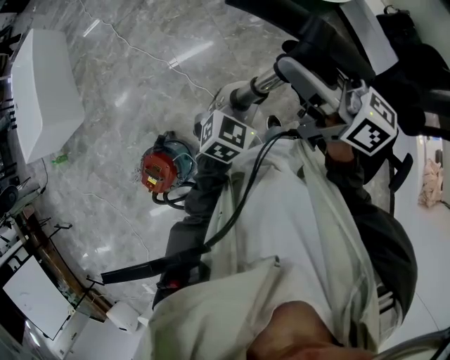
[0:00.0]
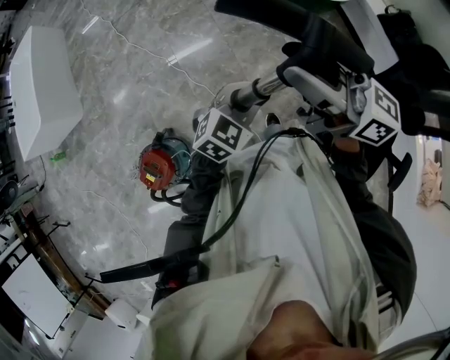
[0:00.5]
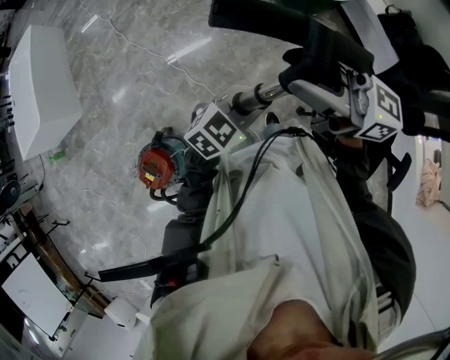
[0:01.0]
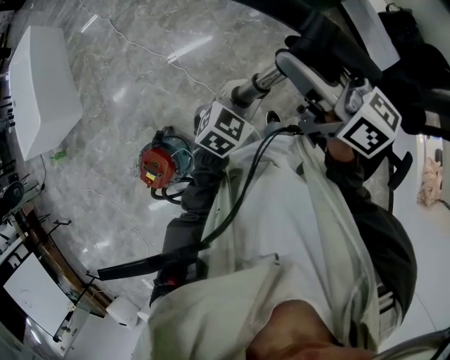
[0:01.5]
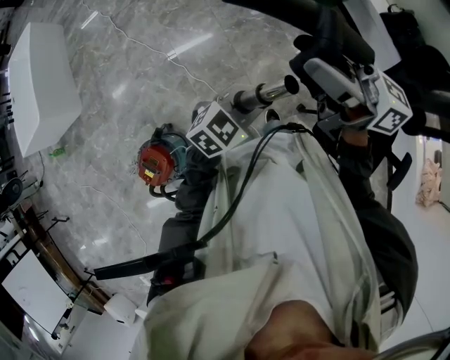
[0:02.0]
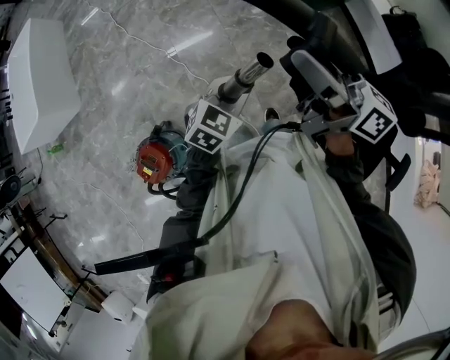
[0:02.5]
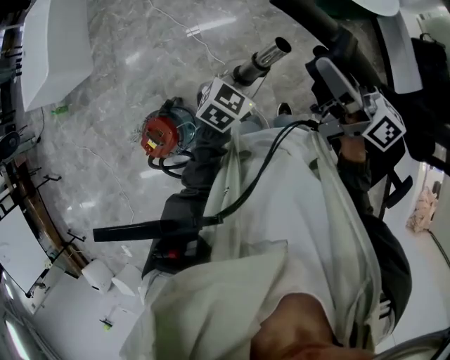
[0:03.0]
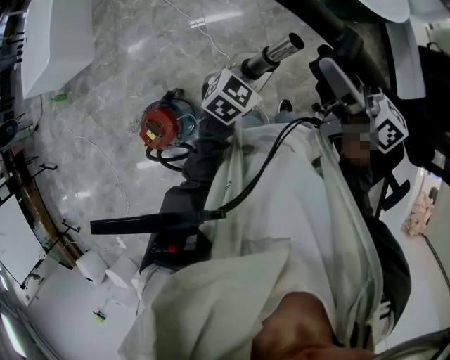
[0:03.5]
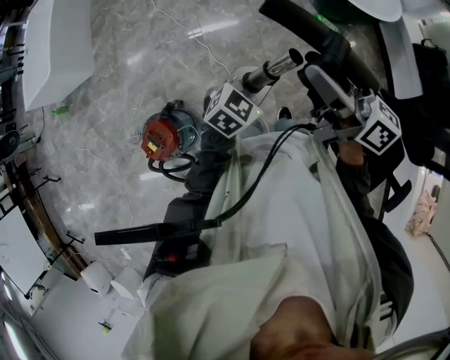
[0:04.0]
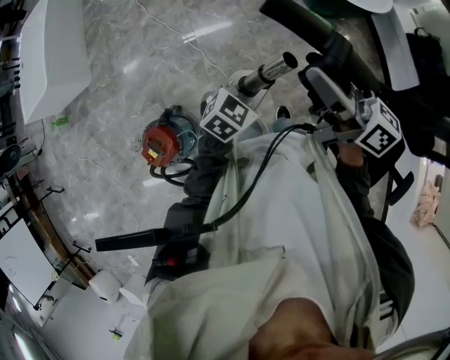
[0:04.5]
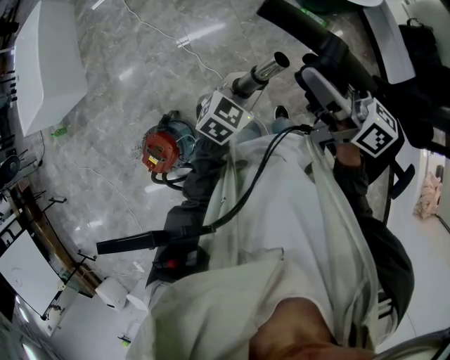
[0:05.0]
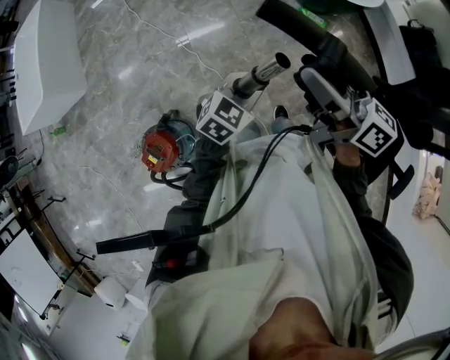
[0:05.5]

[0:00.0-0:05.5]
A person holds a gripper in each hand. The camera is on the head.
0:02.0 to 0:03.5: The right gripper travels downward and to the left by some 10 cm; the left gripper goes approximately 10 cm to the left and forward, and swivels some 20 degrees.
0:03.5 to 0:05.5: The grippers make only small movements.

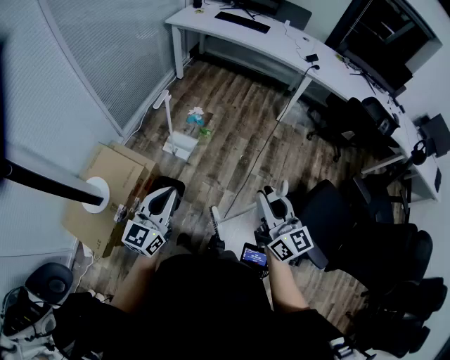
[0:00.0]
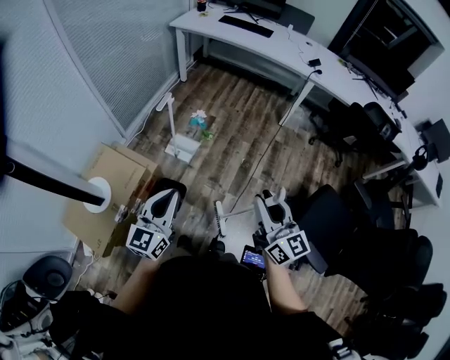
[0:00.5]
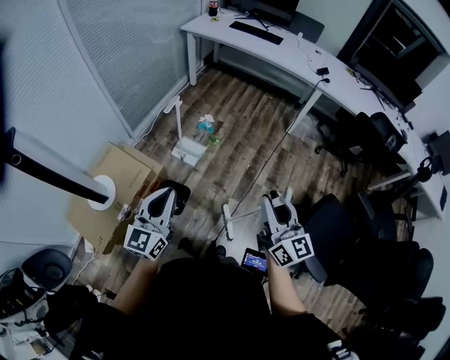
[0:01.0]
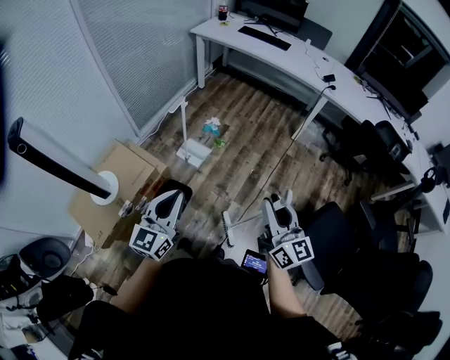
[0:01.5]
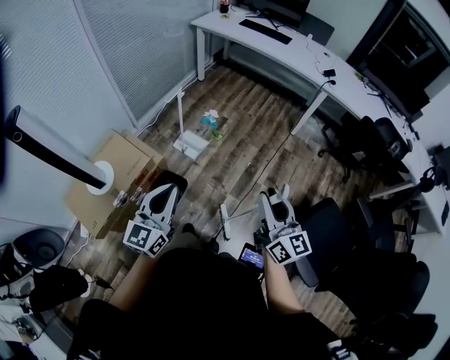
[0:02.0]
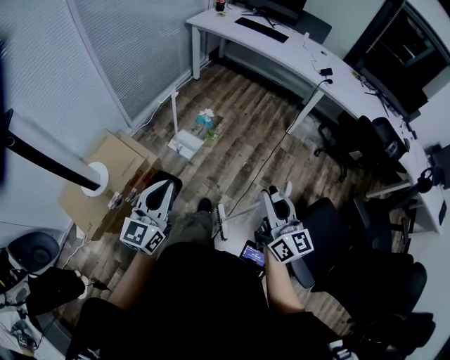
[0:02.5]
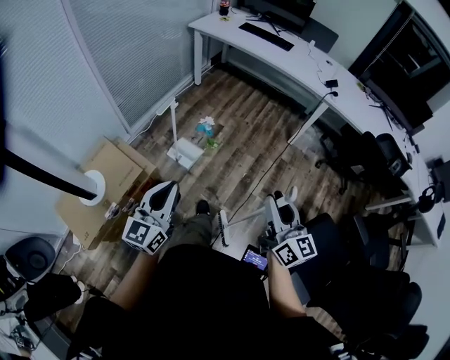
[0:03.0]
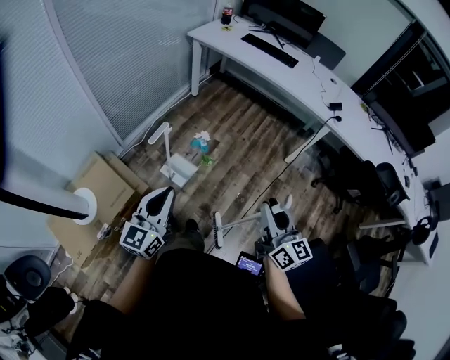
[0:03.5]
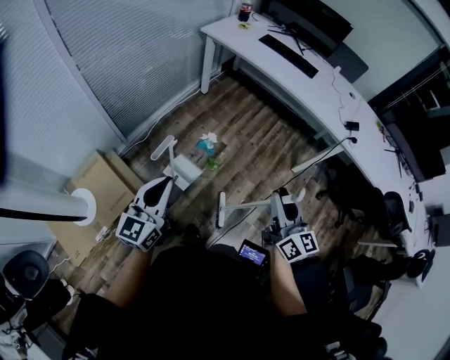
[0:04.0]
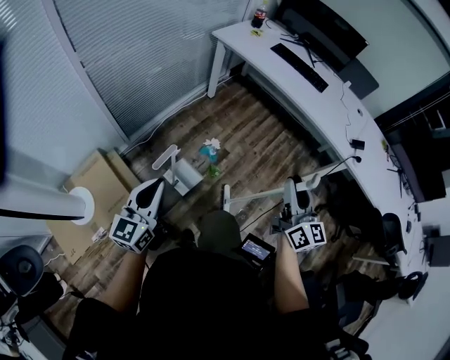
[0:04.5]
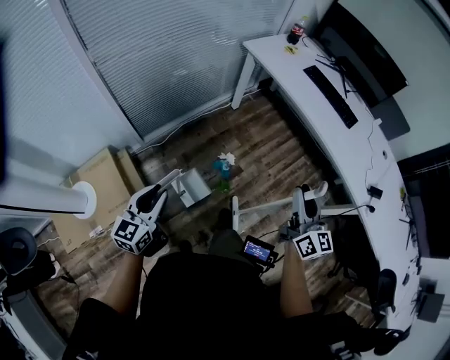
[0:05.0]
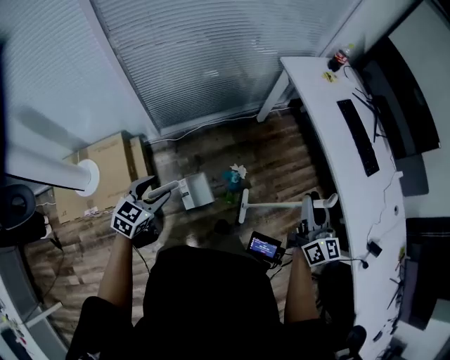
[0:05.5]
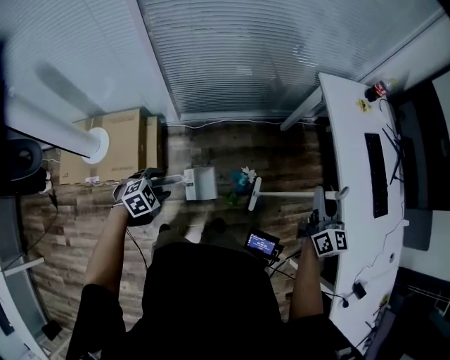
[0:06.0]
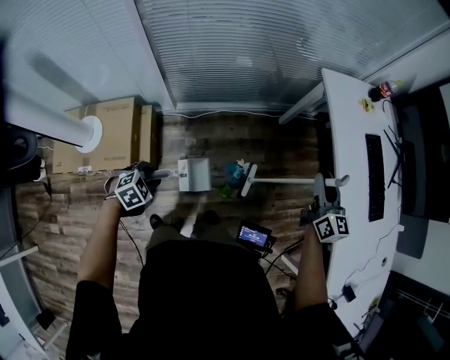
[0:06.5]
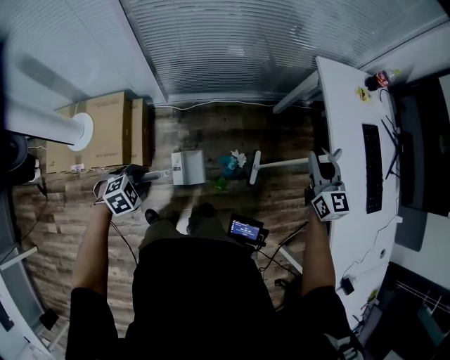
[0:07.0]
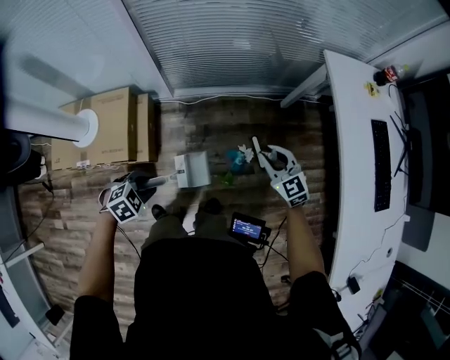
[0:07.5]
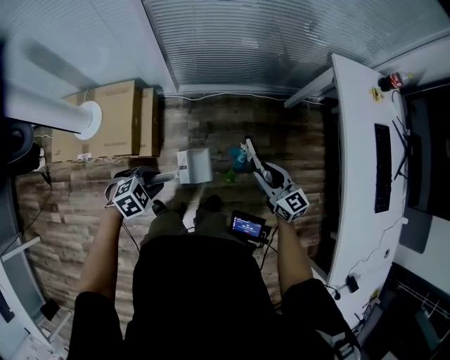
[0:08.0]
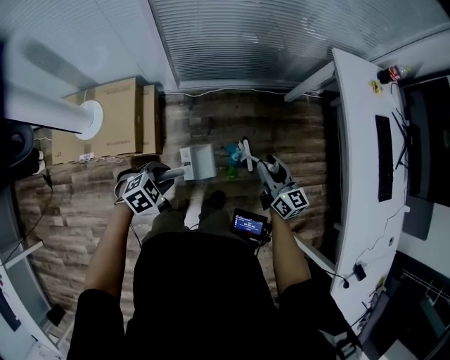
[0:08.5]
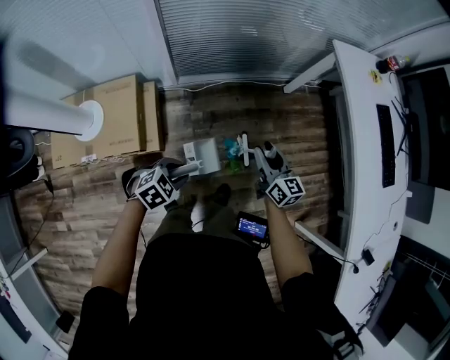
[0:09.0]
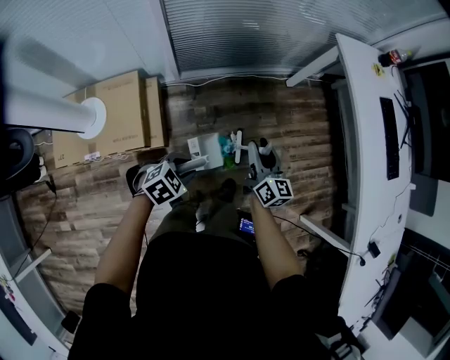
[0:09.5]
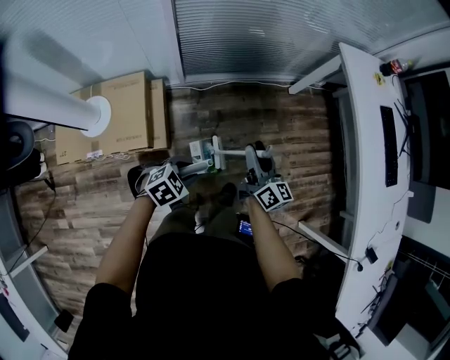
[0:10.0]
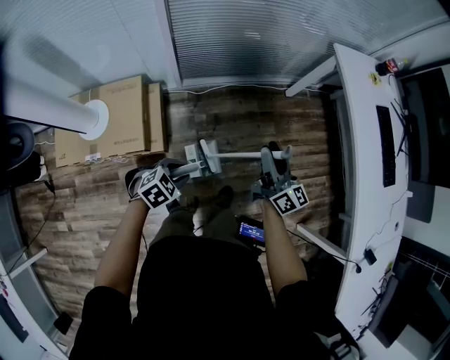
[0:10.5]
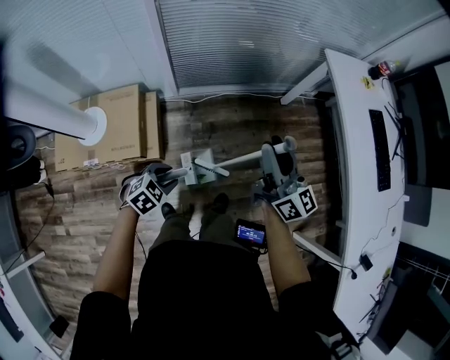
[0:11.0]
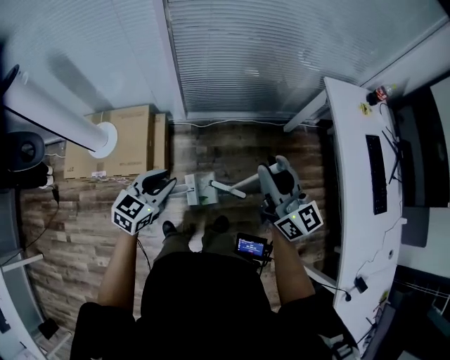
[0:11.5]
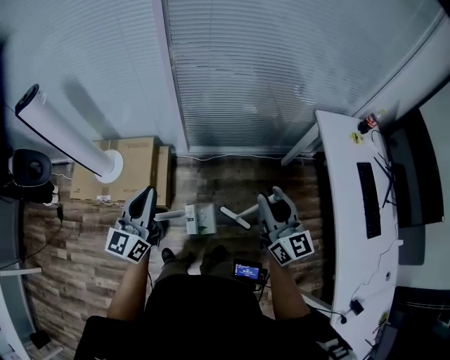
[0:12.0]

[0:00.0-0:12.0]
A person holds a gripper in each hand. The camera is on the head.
0:00.0 to 0:02.0: The left gripper changes place by approximately 5 cm.
0:02.0 to 0:04.0: The two grippers go about 35 cm forward.
0:04.0 to 0:06.0: The left gripper shifts roughly 30 cm downward and forward, angles its fingers downward, by approximately 60 degrees, and opens; the right gripper goes about 50 cm forward, and turns by about 30 degrees.
0:06.0 to 0:08.0: The right gripper is displaced downward and to the left by some 25 cm, and swivels about 40 degrees, while the left gripper closes up.
0:08.0 to 0:10.0: The right gripper shifts approximately 15 cm to the left, and rotates roughly 40 degrees.
0:10.0 to 0:12.0: Both grippers travel together upward, approximately 25 cm. The left gripper tips its fingers upward by roughly 60 degrees, and closes its fingers, while the right gripper swivels approximately 30 degrees.

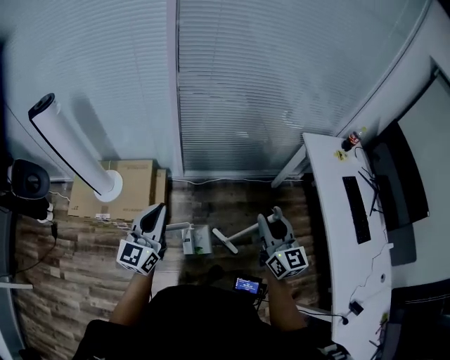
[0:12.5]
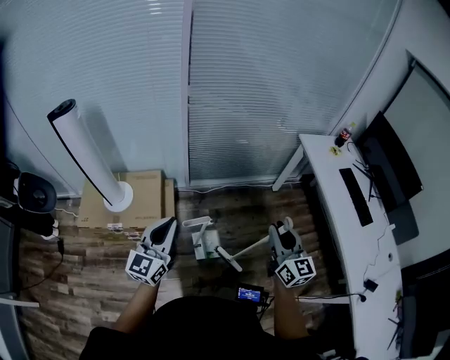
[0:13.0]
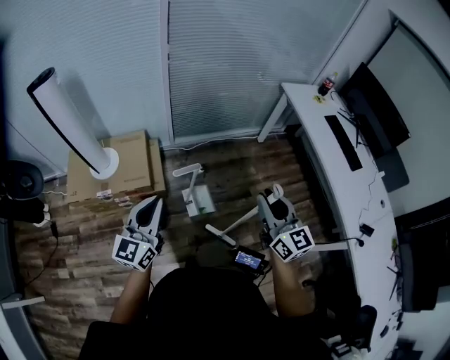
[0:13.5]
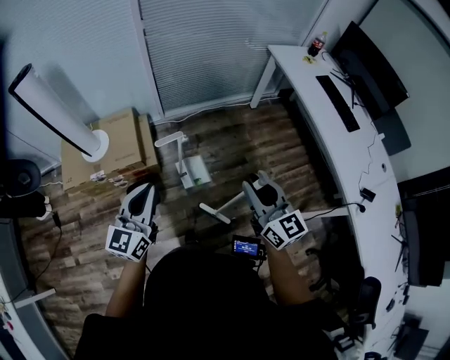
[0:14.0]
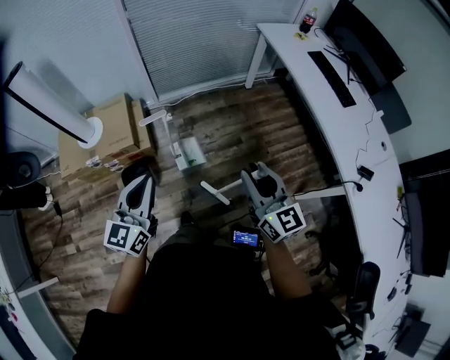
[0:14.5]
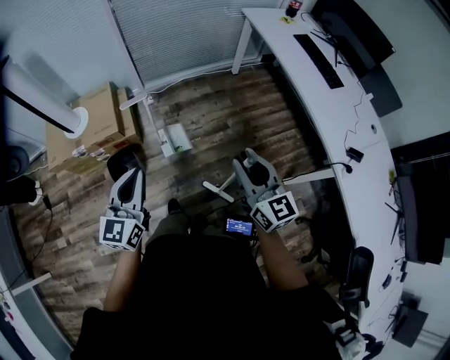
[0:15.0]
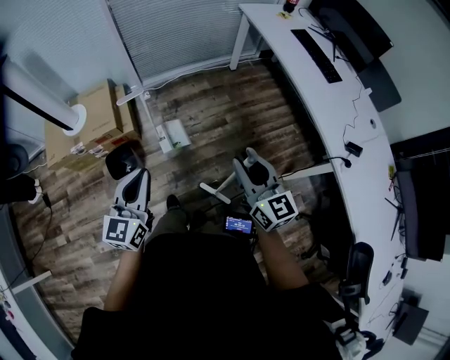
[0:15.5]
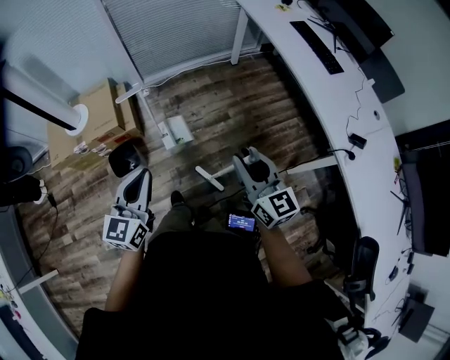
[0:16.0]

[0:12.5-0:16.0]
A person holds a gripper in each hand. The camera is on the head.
0:12.5 to 0:14.5: The grippers both shift backward by approximately 30 cm.
0:14.5 to 0:16.0: Both grippers move backward and to the right, approximately 10 cm.

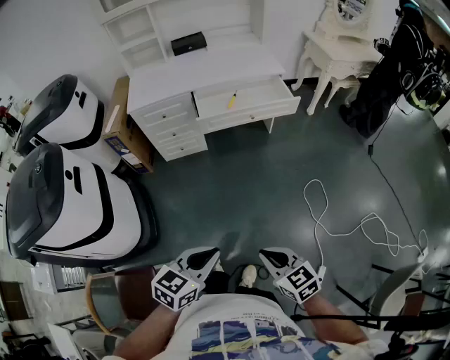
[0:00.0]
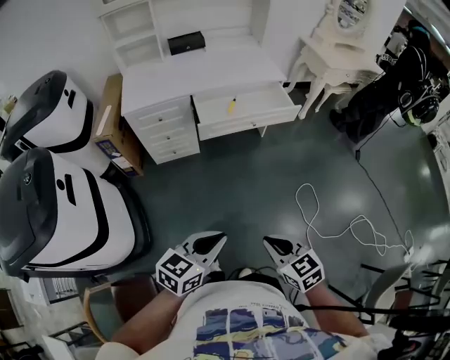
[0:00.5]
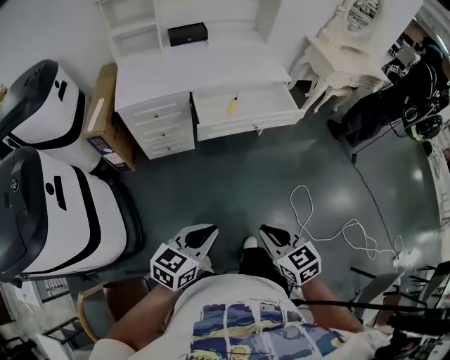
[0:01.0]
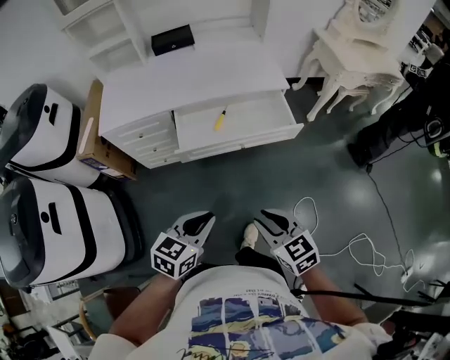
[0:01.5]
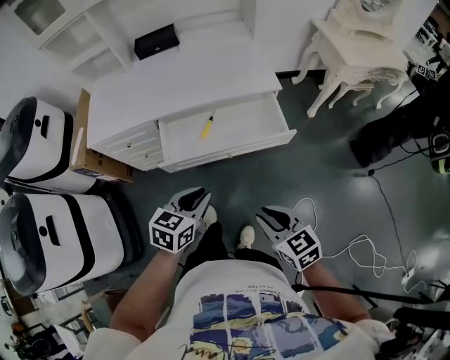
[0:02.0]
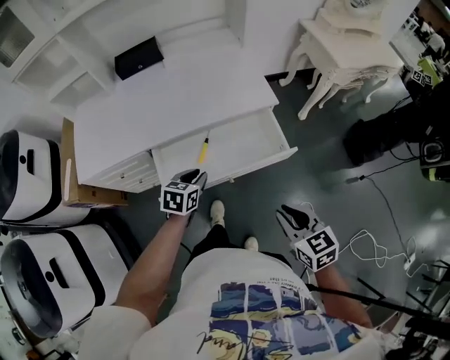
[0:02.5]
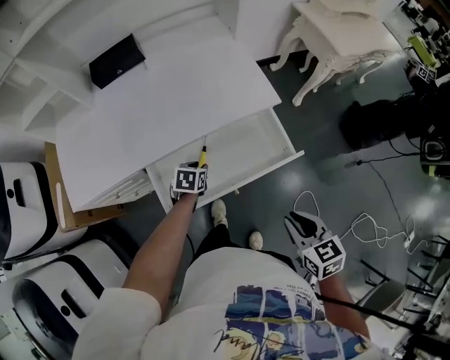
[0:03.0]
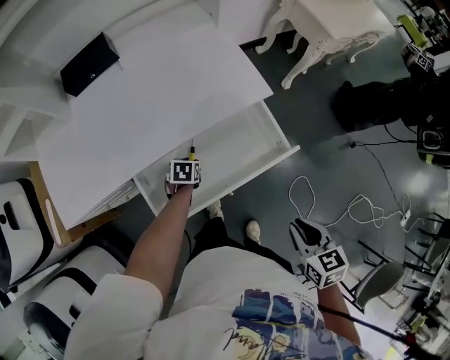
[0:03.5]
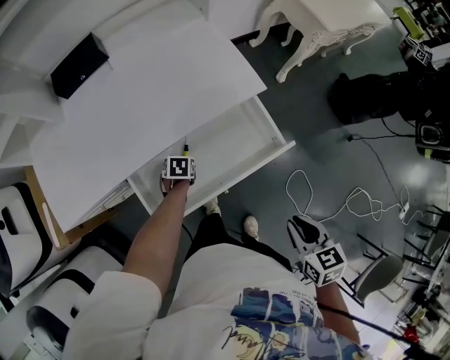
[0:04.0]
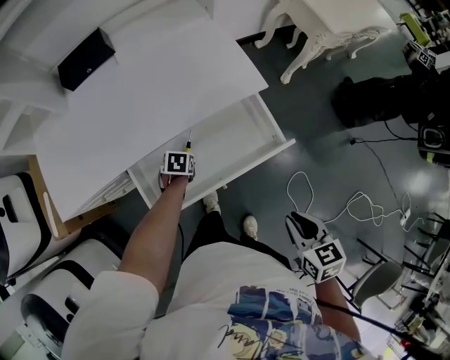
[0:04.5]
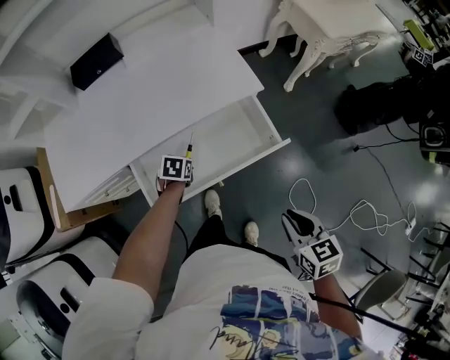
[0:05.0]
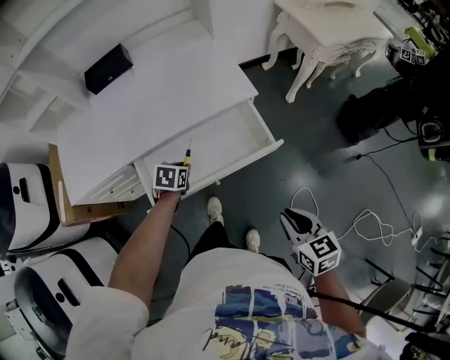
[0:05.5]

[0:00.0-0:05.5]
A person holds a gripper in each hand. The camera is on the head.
0:00.0 to 0:02.0: Both grippers are carried forward, roughly 40 cm.
0:02.0 to 0:03.5: The right gripper shifts some 15 cm forward, and swivels about 40 degrees. Meanwhile the left gripper travels forward and downward by roughly 40 cm, and tips its fingers downward by roughly 30 degrees.
0:03.5 to 0:05.5: The left gripper shifts roughly 15 cm upward and backward, while the right gripper ends up about 5 cm from where it was.
